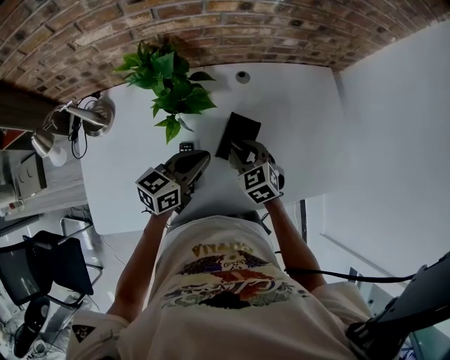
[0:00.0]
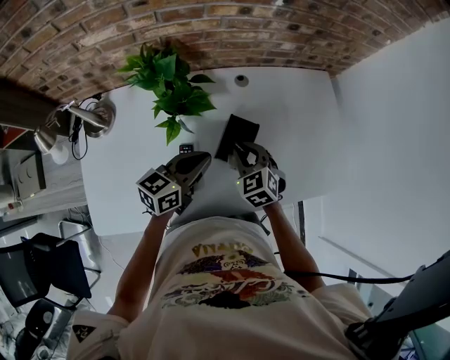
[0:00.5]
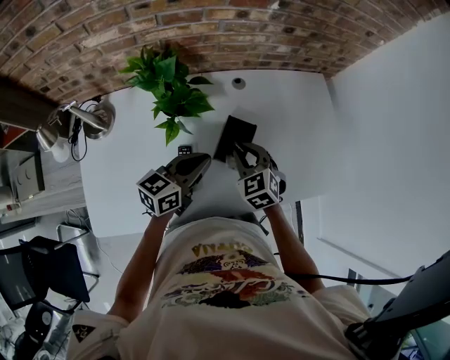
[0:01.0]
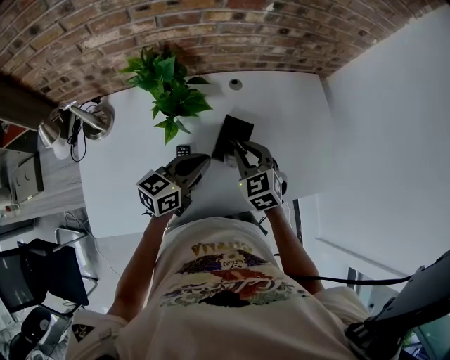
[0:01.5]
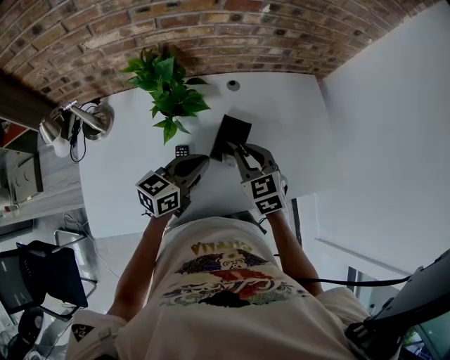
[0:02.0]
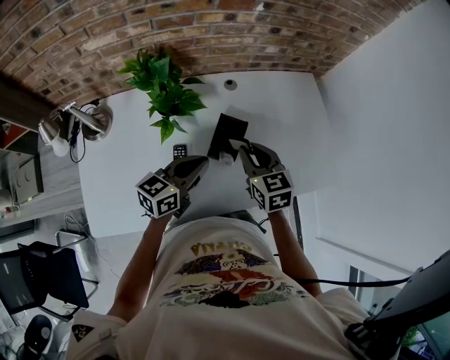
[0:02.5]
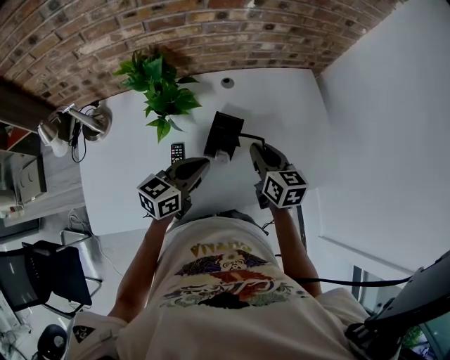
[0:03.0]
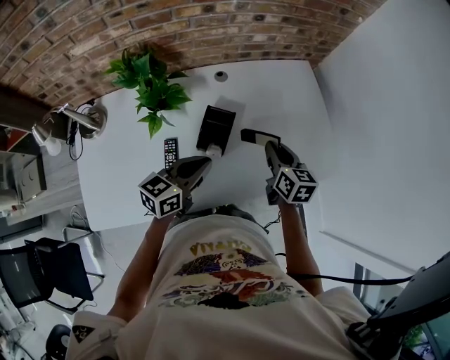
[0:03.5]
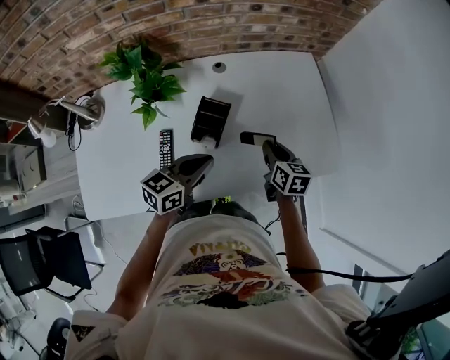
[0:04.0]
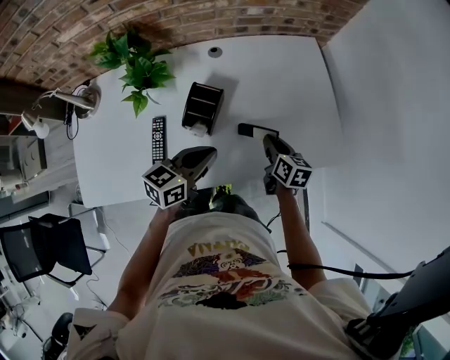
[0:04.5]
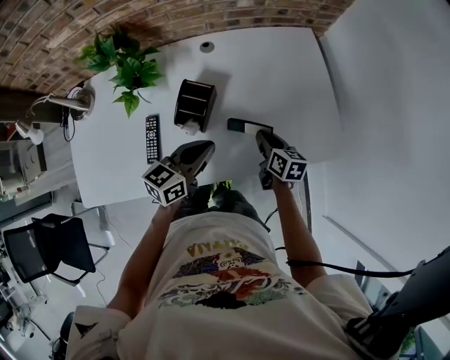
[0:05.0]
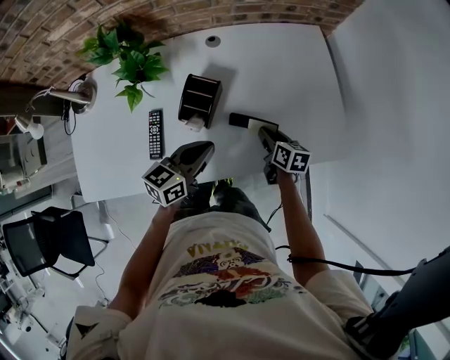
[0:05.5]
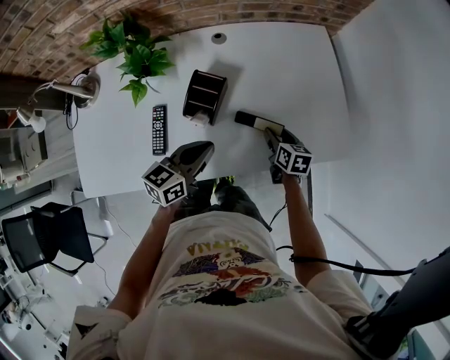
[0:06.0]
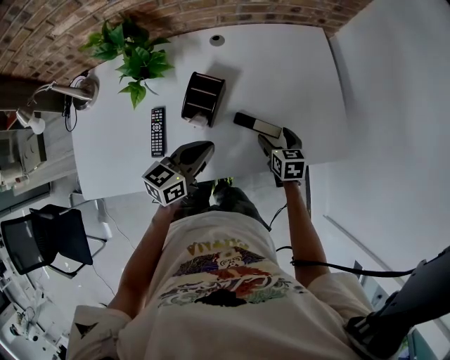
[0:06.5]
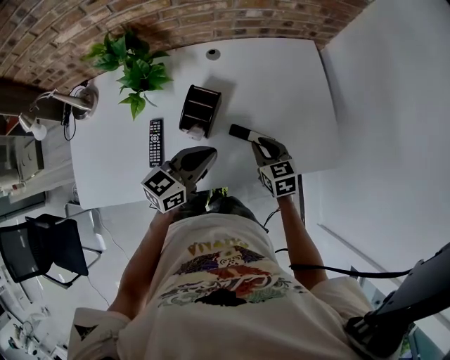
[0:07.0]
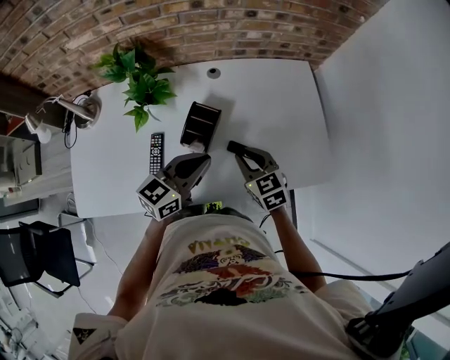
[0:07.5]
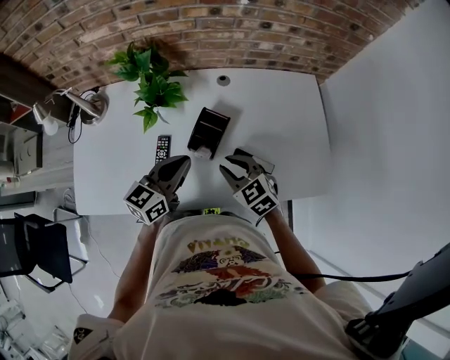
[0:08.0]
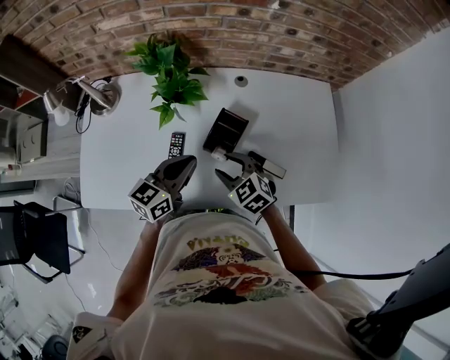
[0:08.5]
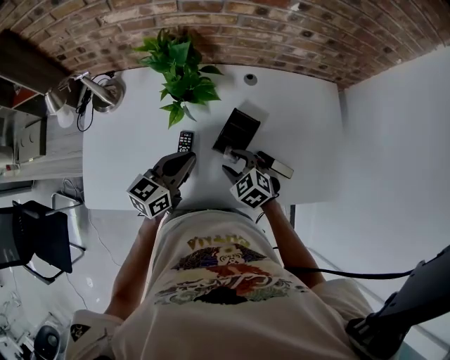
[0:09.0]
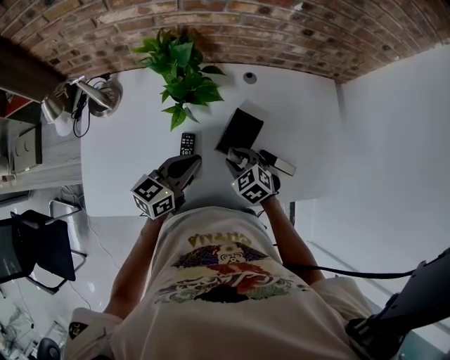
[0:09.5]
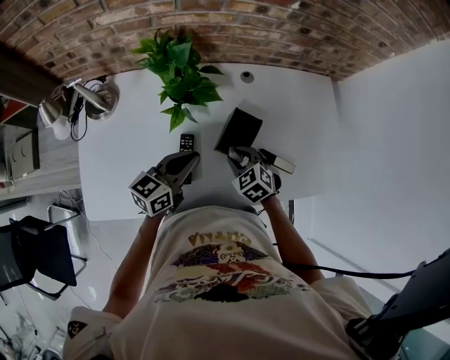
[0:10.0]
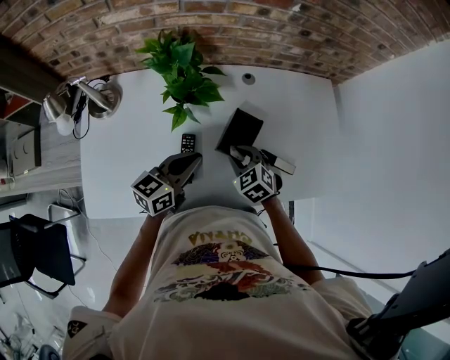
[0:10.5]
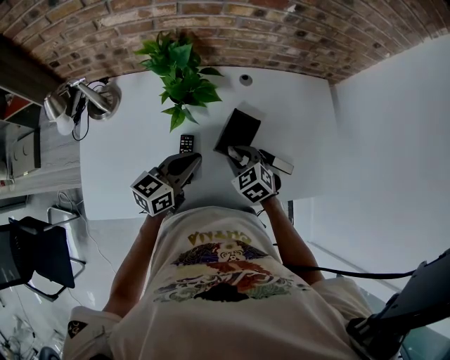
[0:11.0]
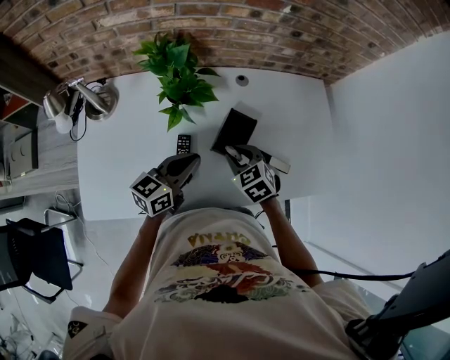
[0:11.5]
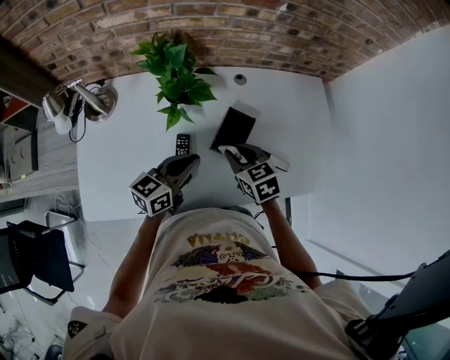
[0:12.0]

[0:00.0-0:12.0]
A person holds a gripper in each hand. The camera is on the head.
0:00.0 to 0:02.0: The right gripper heads upward, covering about 10 cm.
0:02.0 to 0:04.0: The right gripper is displaced to the right and downward by some 20 cm, and rotates around the line of its fingers by some 40 degrees, clockwise from behind. Meanwhile the left gripper heads to the right, covering approximately 10 cm.
0:04.0 to 0:06.0: The left gripper ends up roughly 5 cm from where it was; the right gripper is displaced downward by roughly 10 cm, and opens its fingers.
0:06.0 to 0:08.0: The left gripper shifts roughly 10 cm to the left and upward, while the right gripper heads to the left and upward, covering some 25 cm, twists some 50 degrees counterclockwise, seen from behind, and closes.
0:08.0 to 0:10.0: The right gripper goes some 10 cm to the left and downward, and rotates approximately 20 degrees; the left gripper travels to the left by approximately 10 cm.
0:10.0 to 0:12.0: The right gripper is displaced upward by approximately 10 cm, and turns by approximately 20 degrees.

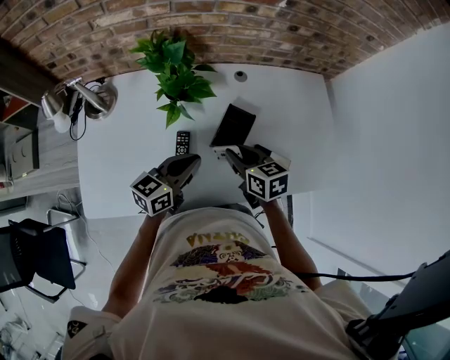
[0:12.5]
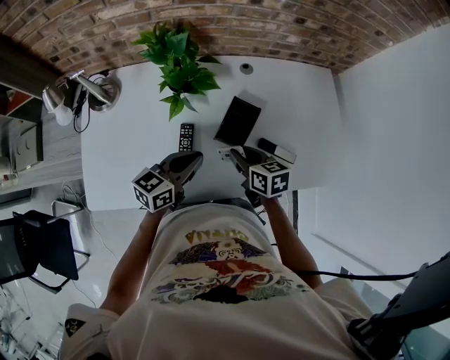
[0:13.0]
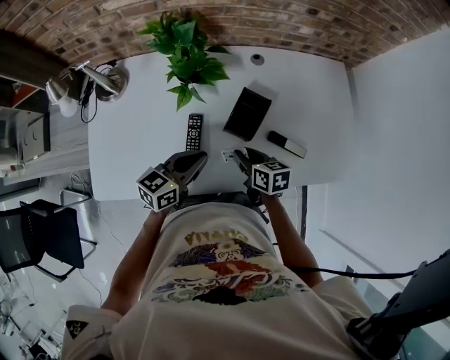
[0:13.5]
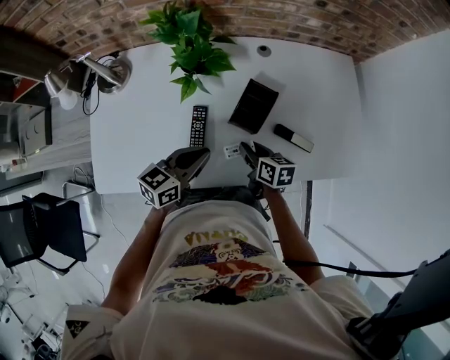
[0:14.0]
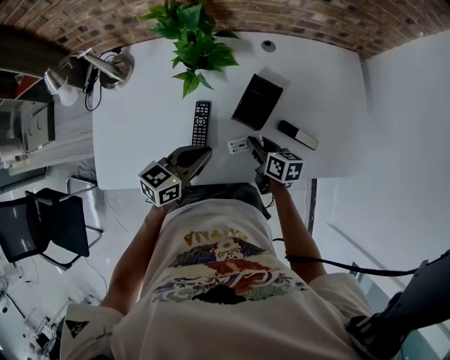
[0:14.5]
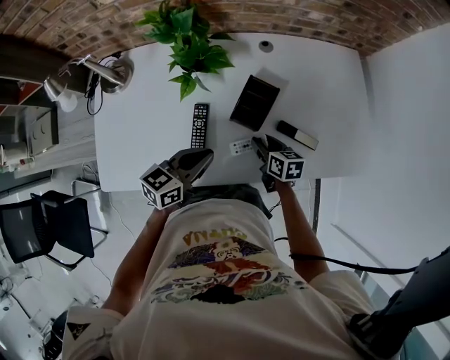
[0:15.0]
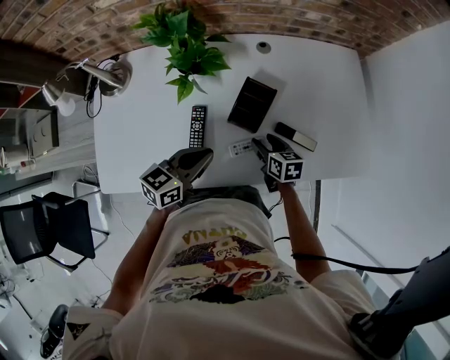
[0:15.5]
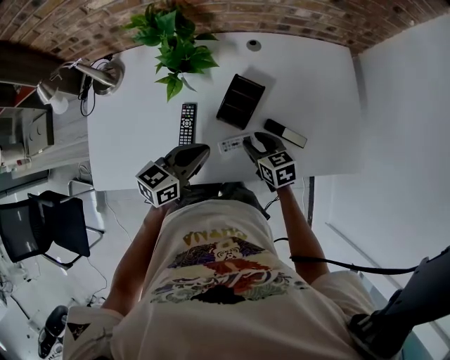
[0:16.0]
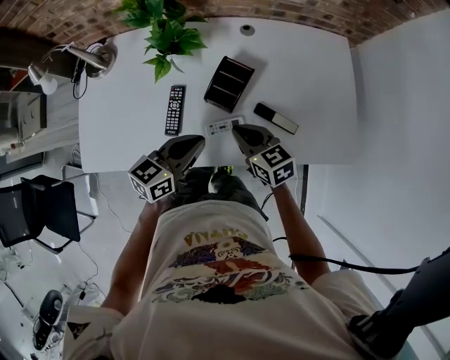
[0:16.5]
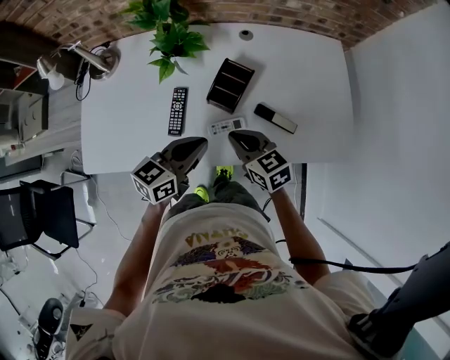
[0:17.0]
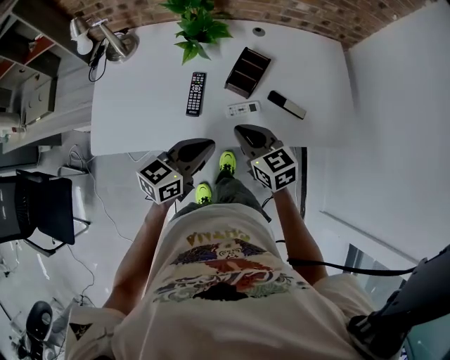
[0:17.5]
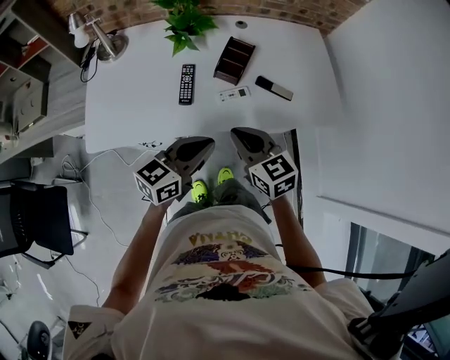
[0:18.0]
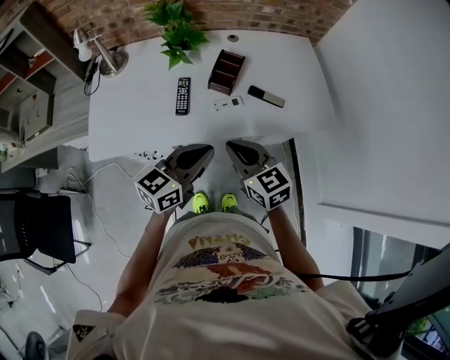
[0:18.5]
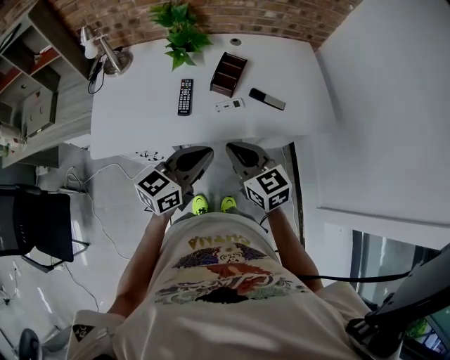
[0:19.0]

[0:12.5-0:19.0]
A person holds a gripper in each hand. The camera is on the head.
0:12.5 to 0:14.5: The right gripper shifts some 15 cm downward, and changes its angle by some 20 degrees, while the left gripper changes place by about 5 cm.
0:14.5 to 0:17.0: The left gripper moves to the right, some 10 cm. The right gripper shifts roughly 10 cm upward and backward, rotates some 40 degrees, and closes.
0:17.0 to 0:19.0: The two grippers go approximately 20 cm backward and upward.

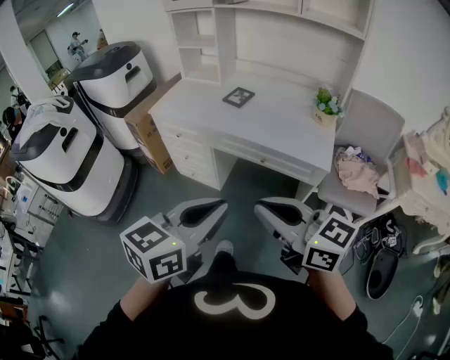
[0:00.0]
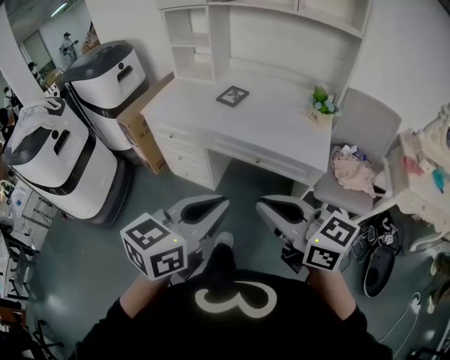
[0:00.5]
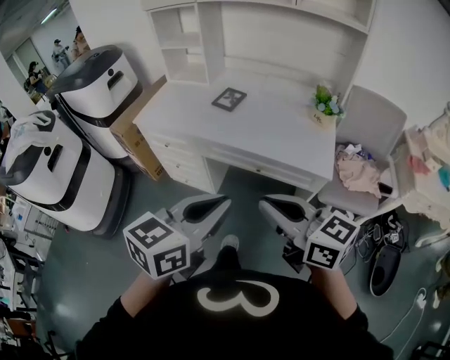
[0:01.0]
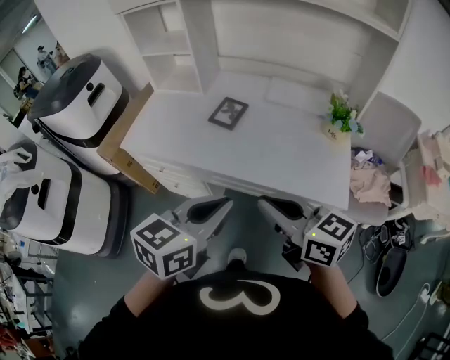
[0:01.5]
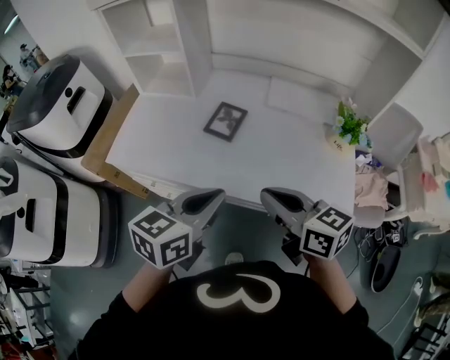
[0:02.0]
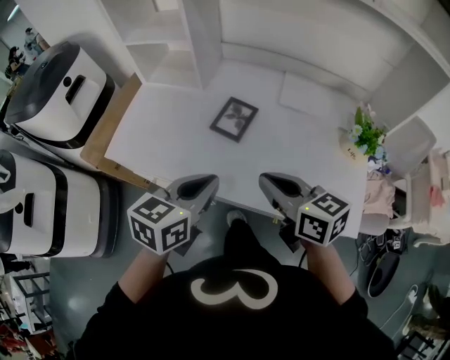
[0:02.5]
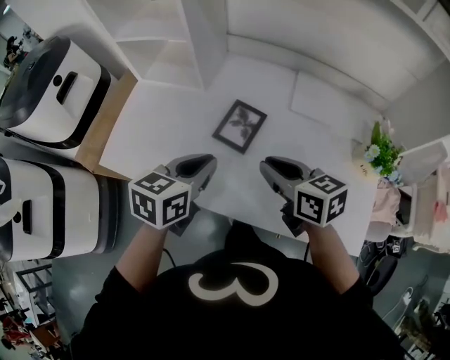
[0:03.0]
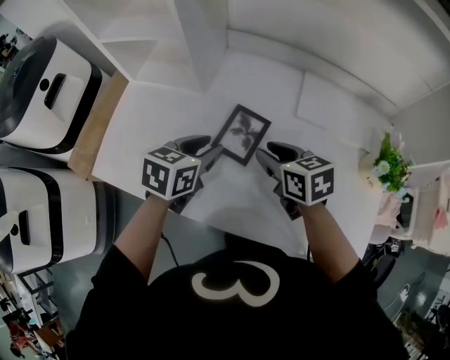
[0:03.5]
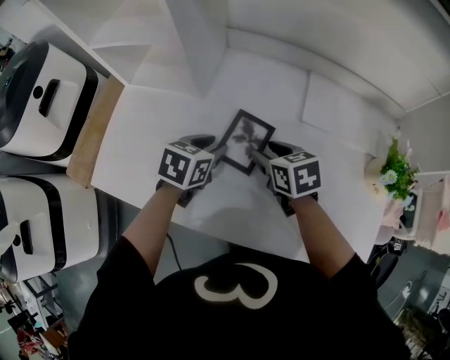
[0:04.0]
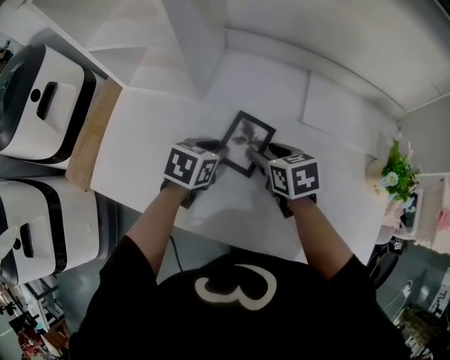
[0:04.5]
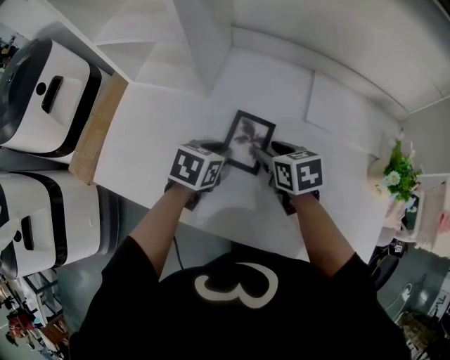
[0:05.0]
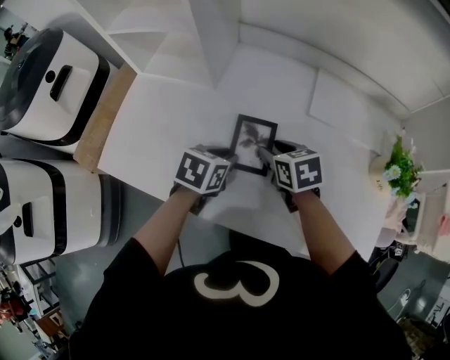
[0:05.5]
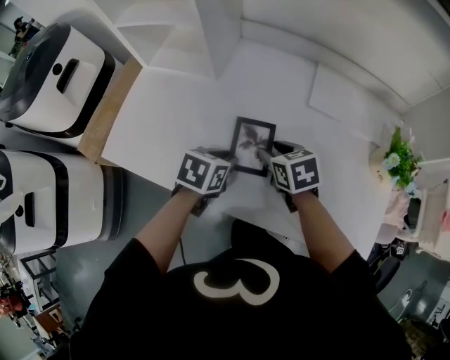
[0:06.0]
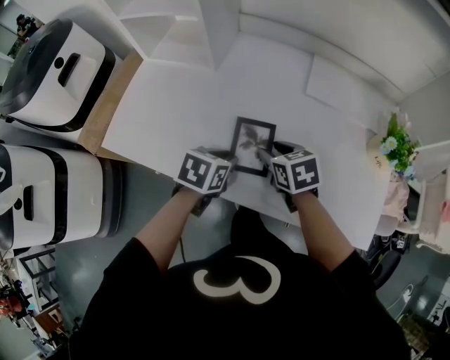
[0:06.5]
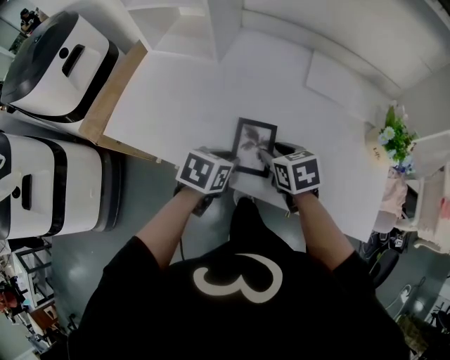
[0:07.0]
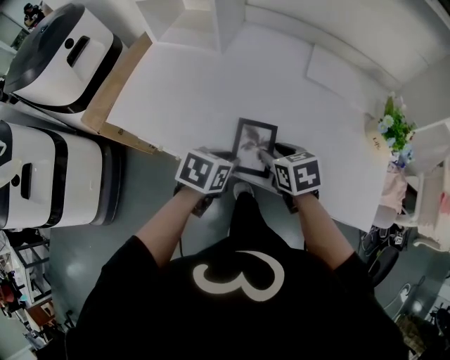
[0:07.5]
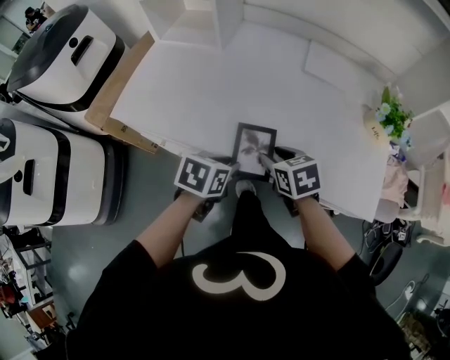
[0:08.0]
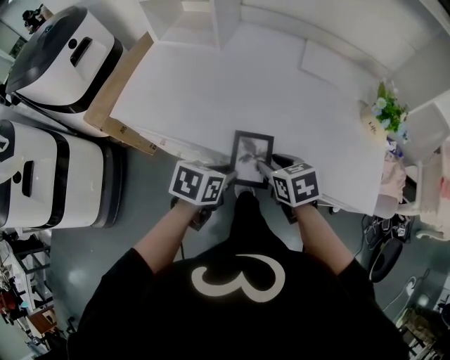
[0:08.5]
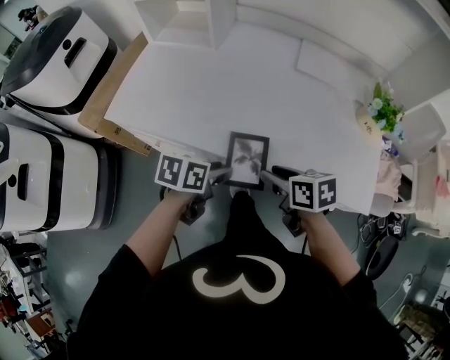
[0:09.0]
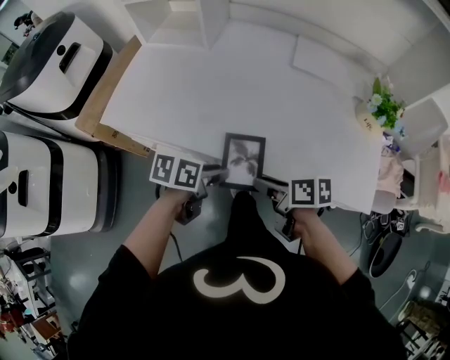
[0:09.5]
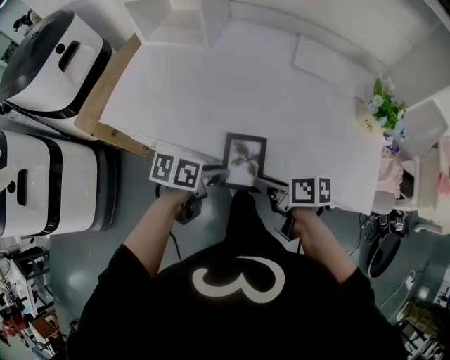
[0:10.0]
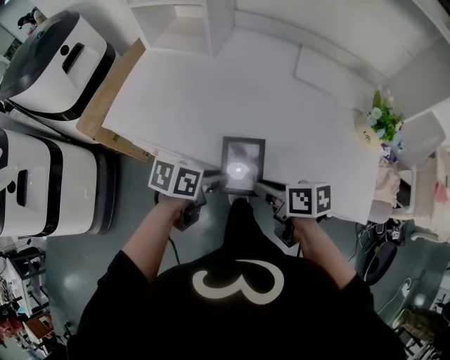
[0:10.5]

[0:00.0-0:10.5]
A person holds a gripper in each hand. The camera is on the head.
0:00.0 to 0:02.0: The pair of grippers is taken forward, about 40 cm. The right gripper swivels approximately 20 degrees.
0:02.0 to 0:04.0: The two grippers go approximately 40 cm forward and downward. The left gripper changes its angle by roughly 30 degrees, and opens its fingers. Meanwhile the right gripper tilts its fingers roughly 30 degrees downward, and opens.
0:04.0 to 0:06.5: Both grippers travel together backward, some 15 cm.
0:06.5 to 0:08.5: Both grippers move backward, some 15 cm.
0:08.5 to 0:10.5: The right gripper rotates roughly 30 degrees.
